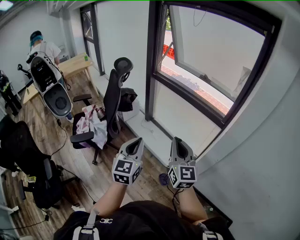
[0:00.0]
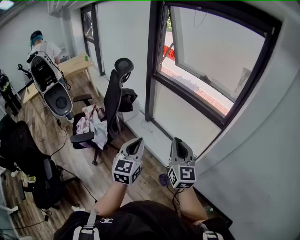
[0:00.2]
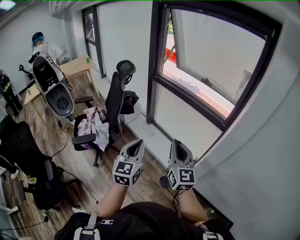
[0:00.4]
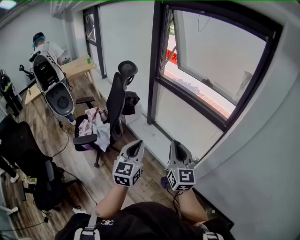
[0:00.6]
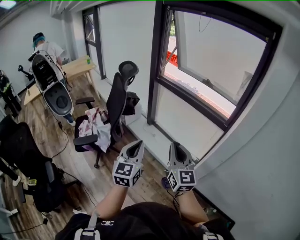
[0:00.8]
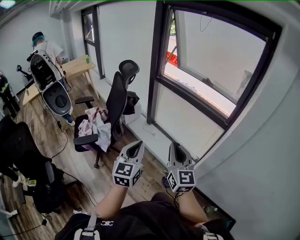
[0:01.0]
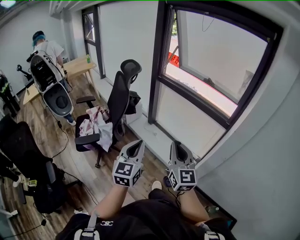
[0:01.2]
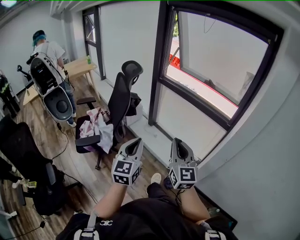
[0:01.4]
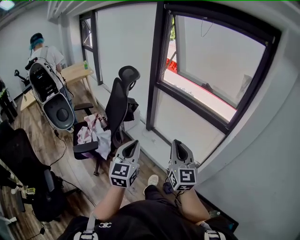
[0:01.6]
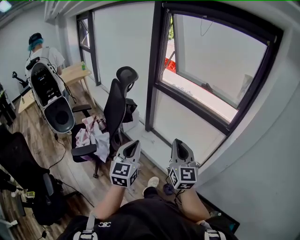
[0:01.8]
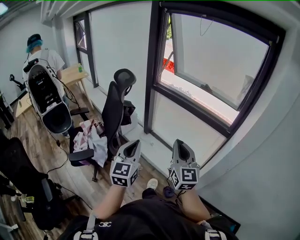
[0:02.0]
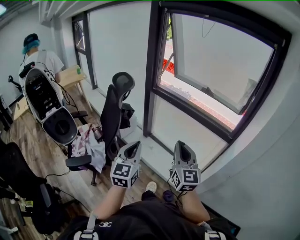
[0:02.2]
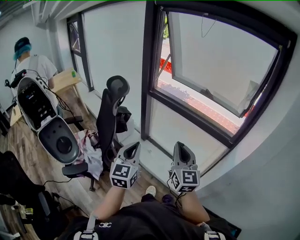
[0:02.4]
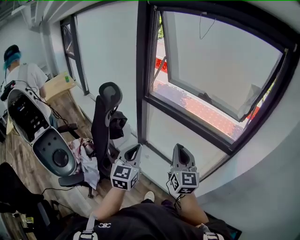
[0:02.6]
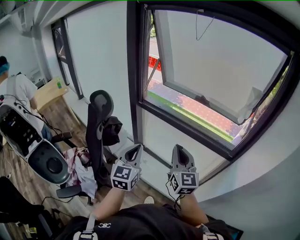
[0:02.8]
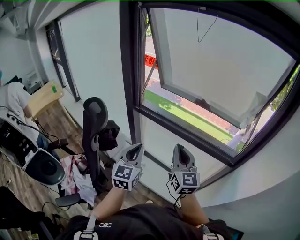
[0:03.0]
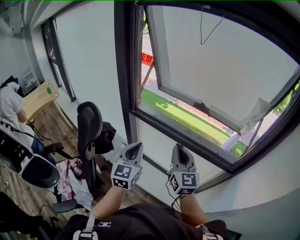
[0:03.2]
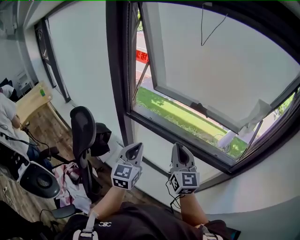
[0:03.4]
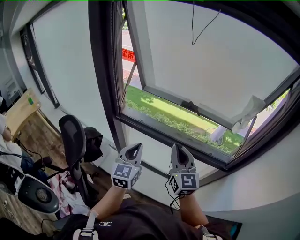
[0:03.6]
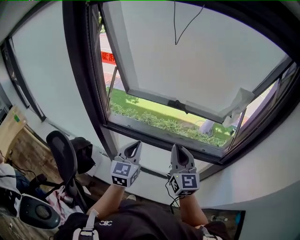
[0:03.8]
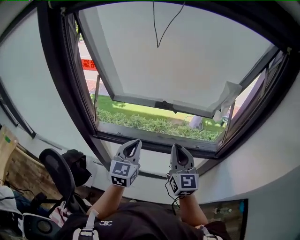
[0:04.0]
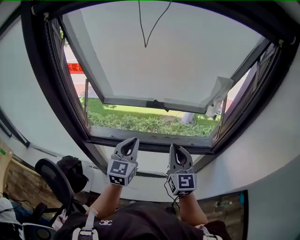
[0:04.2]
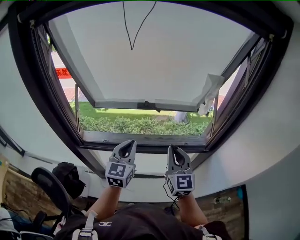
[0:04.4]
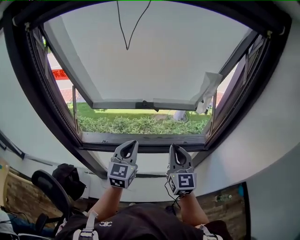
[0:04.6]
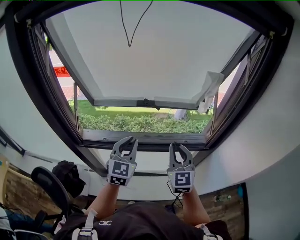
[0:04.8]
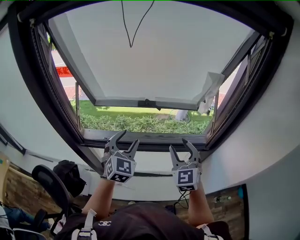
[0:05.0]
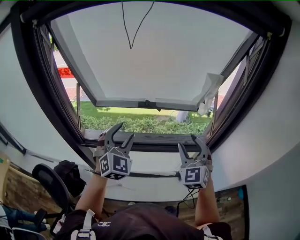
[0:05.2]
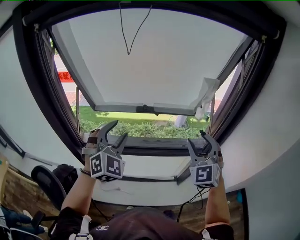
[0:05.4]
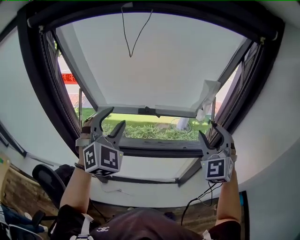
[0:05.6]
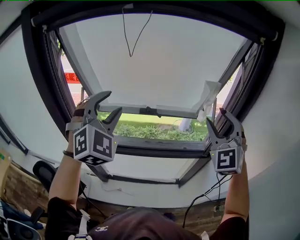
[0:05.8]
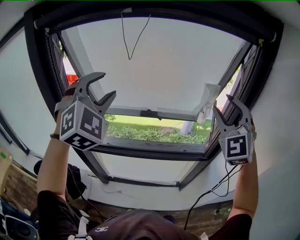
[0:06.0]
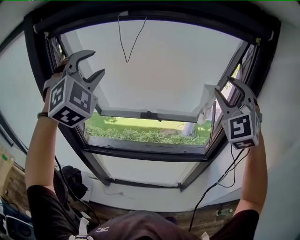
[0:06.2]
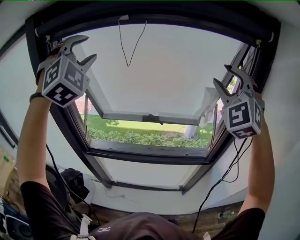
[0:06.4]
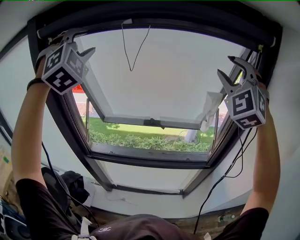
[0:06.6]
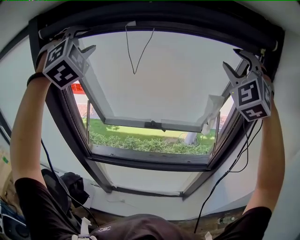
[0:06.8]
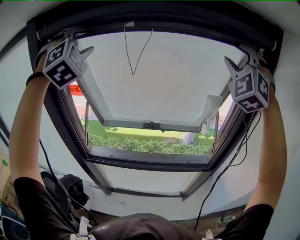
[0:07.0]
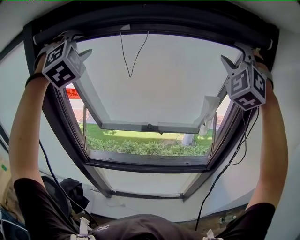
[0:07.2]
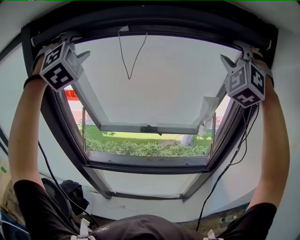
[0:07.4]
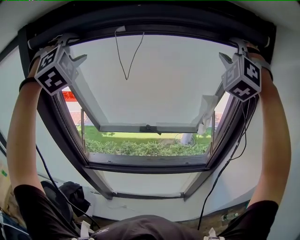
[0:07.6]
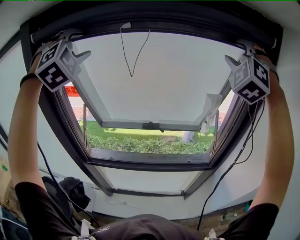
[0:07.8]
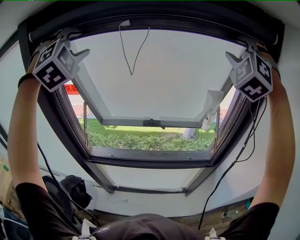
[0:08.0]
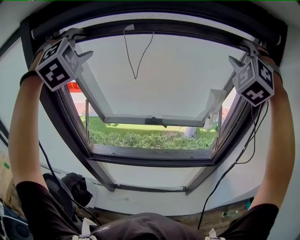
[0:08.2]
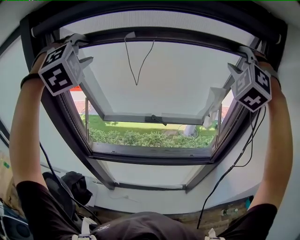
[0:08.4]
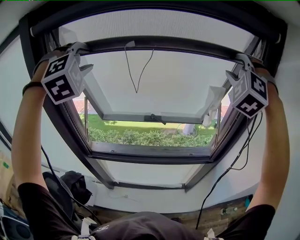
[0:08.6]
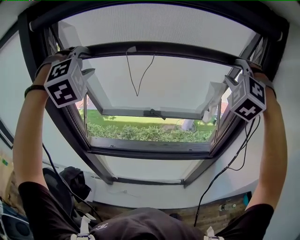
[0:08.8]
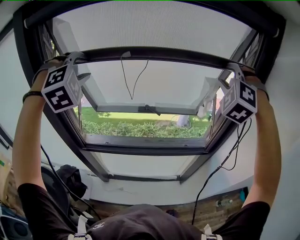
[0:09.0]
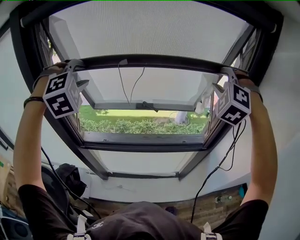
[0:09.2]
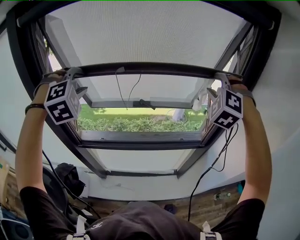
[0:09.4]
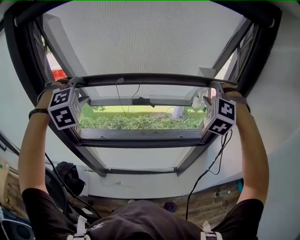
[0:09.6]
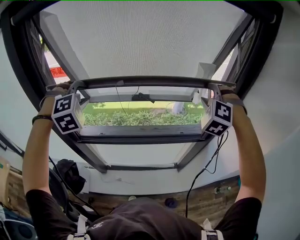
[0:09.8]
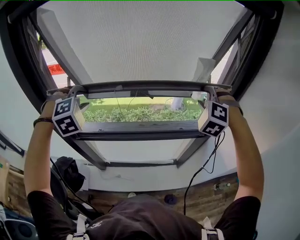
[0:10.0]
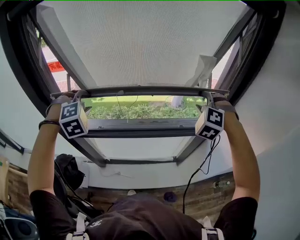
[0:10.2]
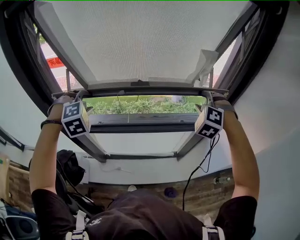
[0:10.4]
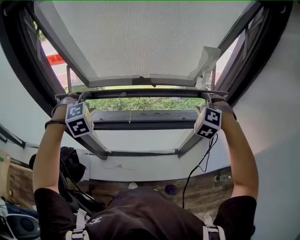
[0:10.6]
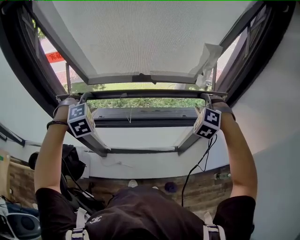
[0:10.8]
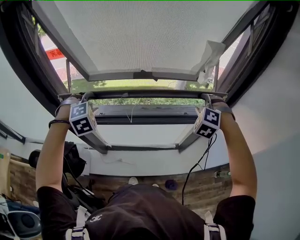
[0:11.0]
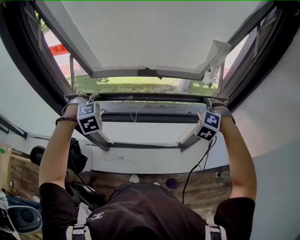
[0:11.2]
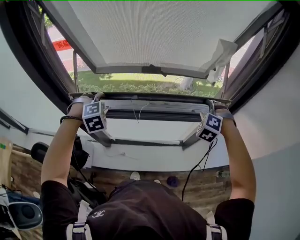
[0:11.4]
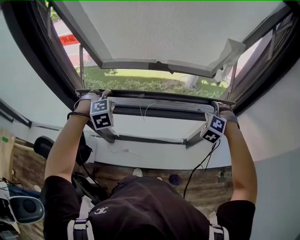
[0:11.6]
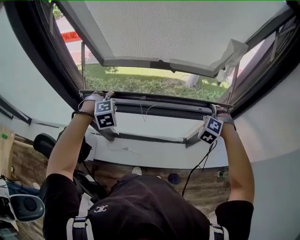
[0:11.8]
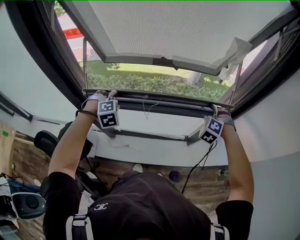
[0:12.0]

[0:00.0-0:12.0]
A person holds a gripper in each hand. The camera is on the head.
0:00.0 to 0:01.6: Both grippers travel together to the left, some 10 cm.
0:01.6 to 0:03.0: The pair of grippers is taken forward, roughly 50 cm.
0:03.0 to 0:04.4: The left gripper changes place by some 30 cm, and changes its angle by some 30 degrees. The right gripper moves approximately 20 cm, and rotates roughly 30 degrees.
0:04.4 to 0:06.0: The left gripper moves upward, roughly 30 cm, twists roughly 60 degrees clockwise, seen from behind, and opens. The right gripper goes roughly 30 cm upward and to the right, twists roughly 50 degrees counterclockwise, seen from behind, and opens up.
0:06.0 to 0:07.6: The right gripper is displaced upward and forward by some 20 cm, and turns by some 40 degrees, while the left gripper is displaced upward, forward and to the left by roughly 20 cm, and turns by approximately 20 degrees.
0:07.6 to 0:09.0: Both grippers travel together downward, roughly 15 cm. The right gripper changes its angle by about 20 degrees.
0:09.0 to 0:10.4: Both grippers move downward, roughly 25 cm. The right gripper changes its angle by some 20 degrees; the left gripper turns by roughly 20 degrees.
0:10.4 to 0:12.0: Both grippers move downward, approximately 20 cm.

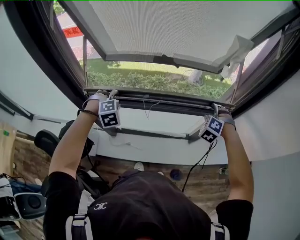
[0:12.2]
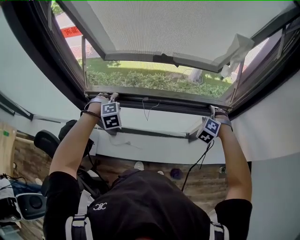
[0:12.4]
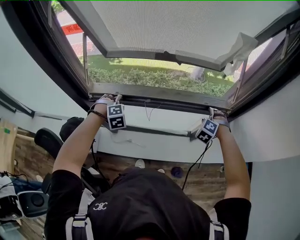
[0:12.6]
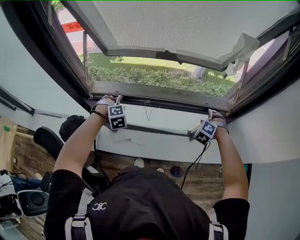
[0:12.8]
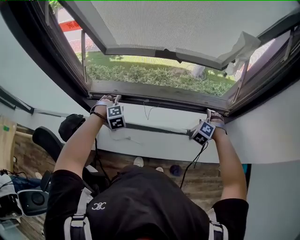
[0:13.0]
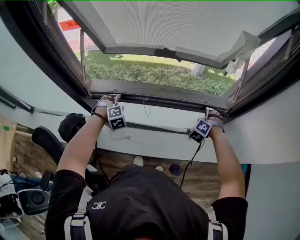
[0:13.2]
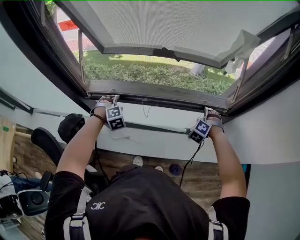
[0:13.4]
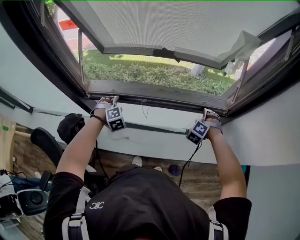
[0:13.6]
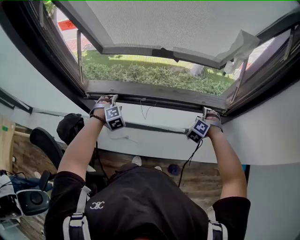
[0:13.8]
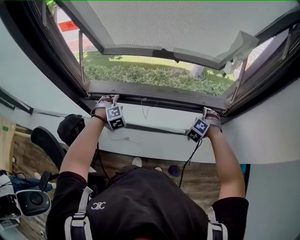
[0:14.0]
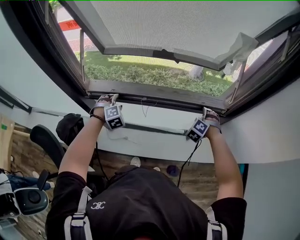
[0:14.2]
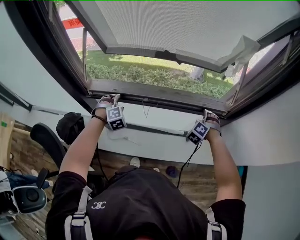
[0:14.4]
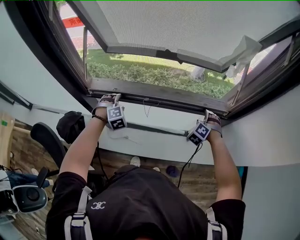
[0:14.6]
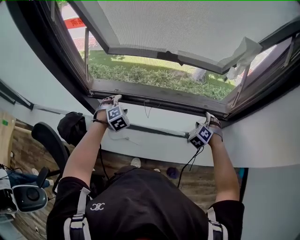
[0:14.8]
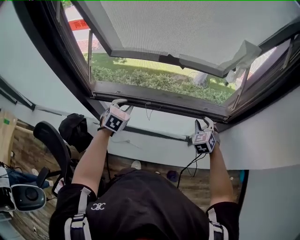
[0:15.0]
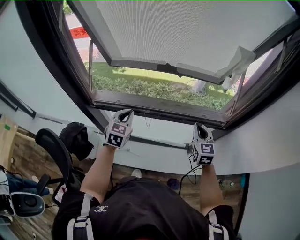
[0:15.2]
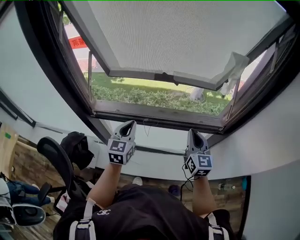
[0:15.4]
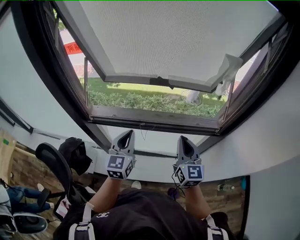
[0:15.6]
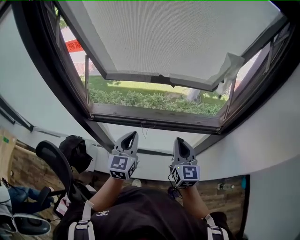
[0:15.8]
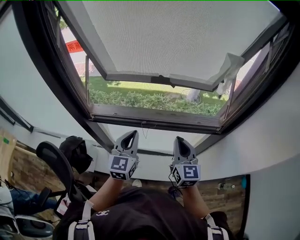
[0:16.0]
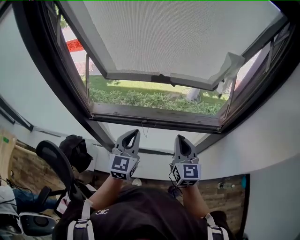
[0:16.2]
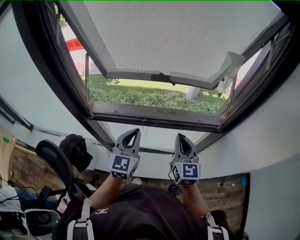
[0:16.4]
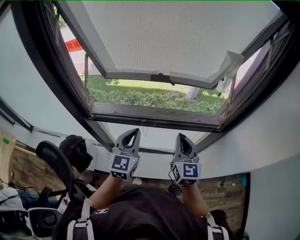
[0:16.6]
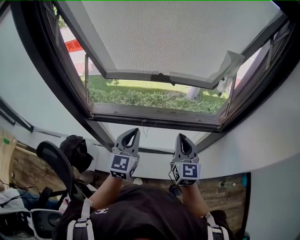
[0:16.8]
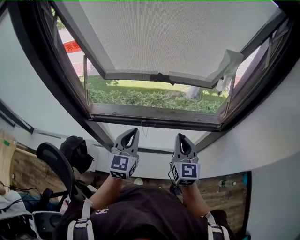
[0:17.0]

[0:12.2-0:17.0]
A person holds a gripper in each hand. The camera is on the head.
0:12.2 to 0:13.8: The grippers both shift downward by some 10 cm.
0:13.8 to 0:15.4: The left gripper heads upward and to the right, covering approximately 20 cm, rolls counterclockwise, seen from behind, by some 60 degrees, and closes its fingers, while the right gripper heads upward, to the left and backward, covering about 20 cm, tilts its fingers roughly 40 degrees upward, and closes its fingers.
0:15.4 to 0:17.0: The left gripper changes place by some 5 cm. The right gripper travels to the left by about 5 cm.

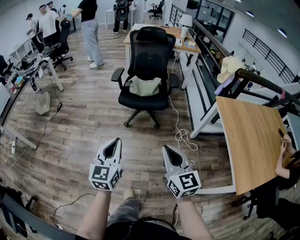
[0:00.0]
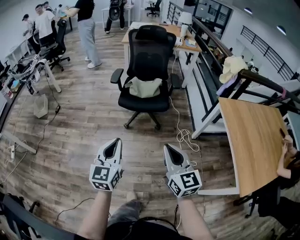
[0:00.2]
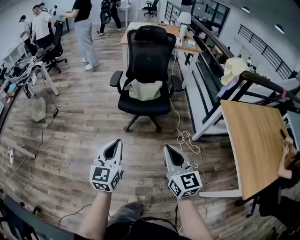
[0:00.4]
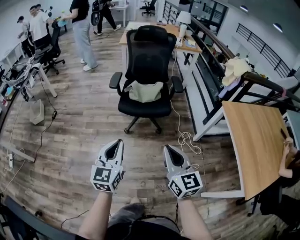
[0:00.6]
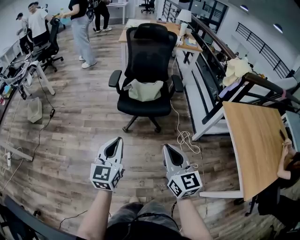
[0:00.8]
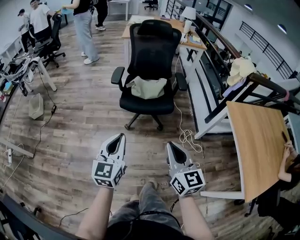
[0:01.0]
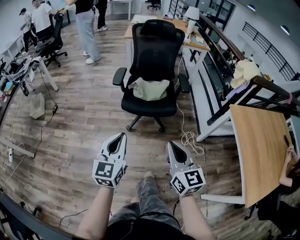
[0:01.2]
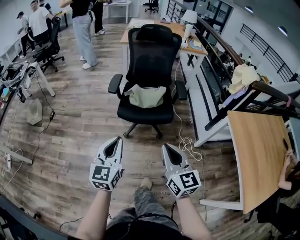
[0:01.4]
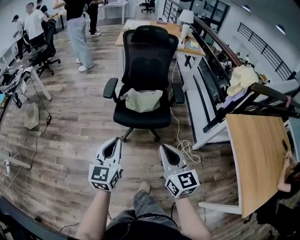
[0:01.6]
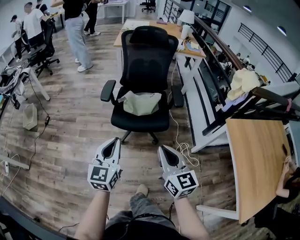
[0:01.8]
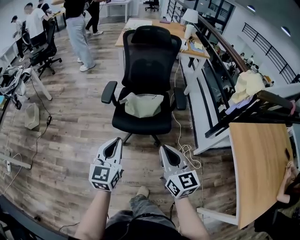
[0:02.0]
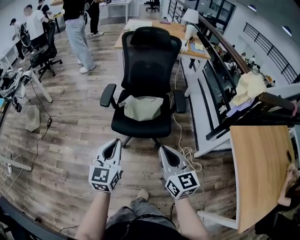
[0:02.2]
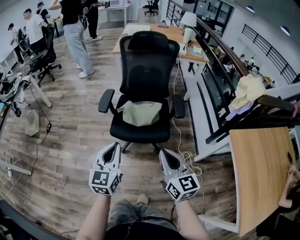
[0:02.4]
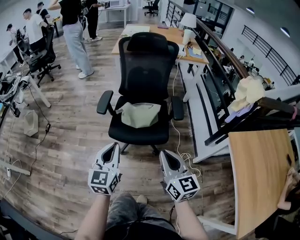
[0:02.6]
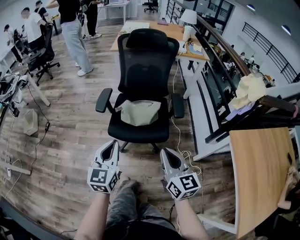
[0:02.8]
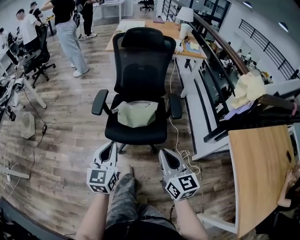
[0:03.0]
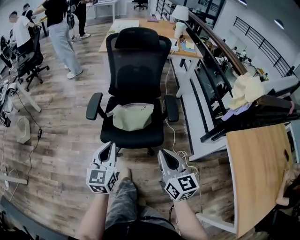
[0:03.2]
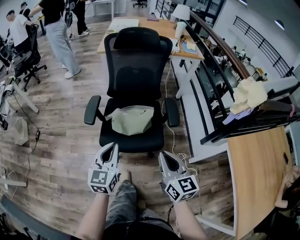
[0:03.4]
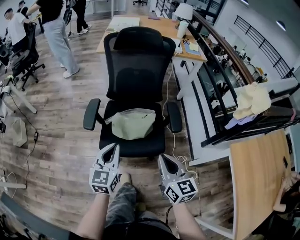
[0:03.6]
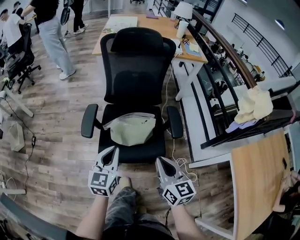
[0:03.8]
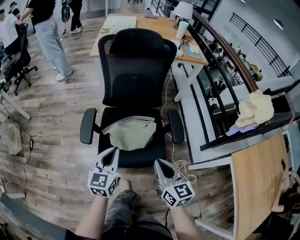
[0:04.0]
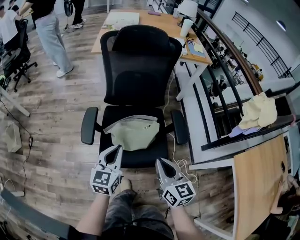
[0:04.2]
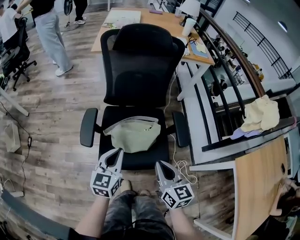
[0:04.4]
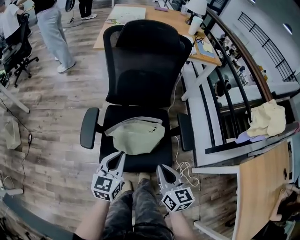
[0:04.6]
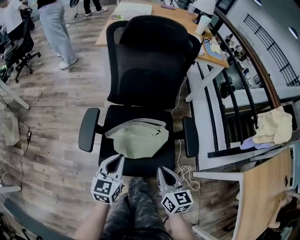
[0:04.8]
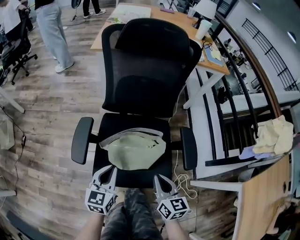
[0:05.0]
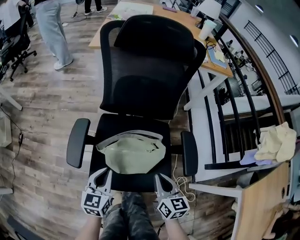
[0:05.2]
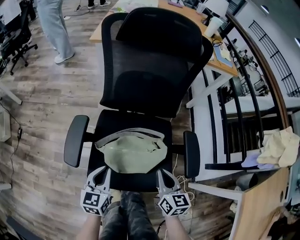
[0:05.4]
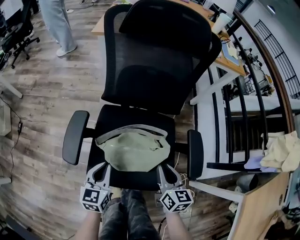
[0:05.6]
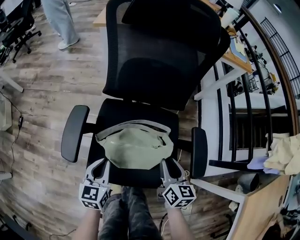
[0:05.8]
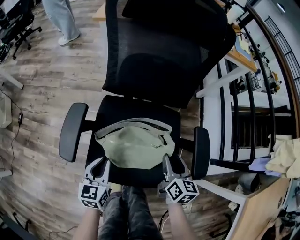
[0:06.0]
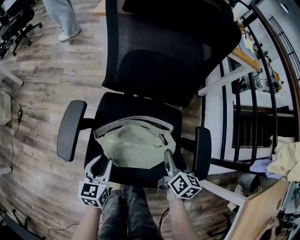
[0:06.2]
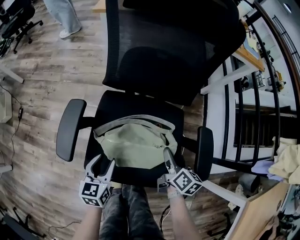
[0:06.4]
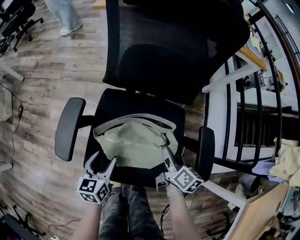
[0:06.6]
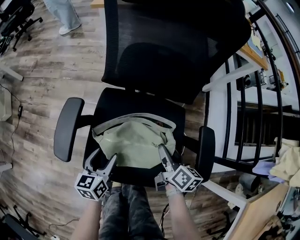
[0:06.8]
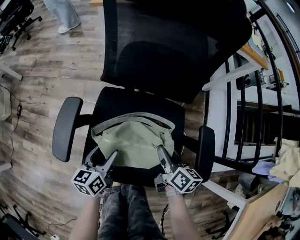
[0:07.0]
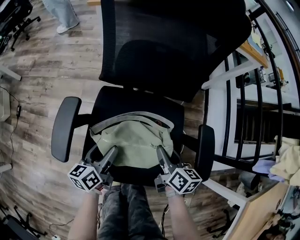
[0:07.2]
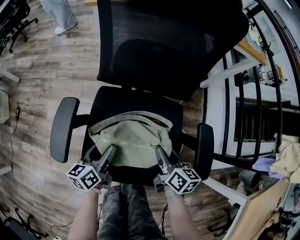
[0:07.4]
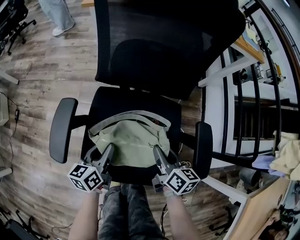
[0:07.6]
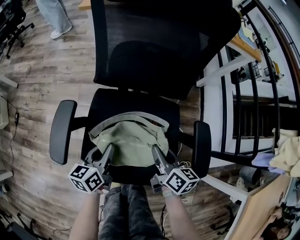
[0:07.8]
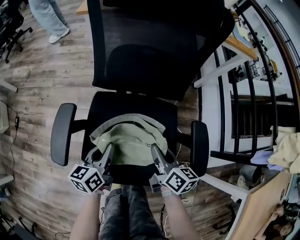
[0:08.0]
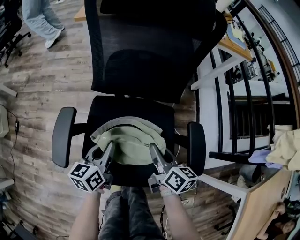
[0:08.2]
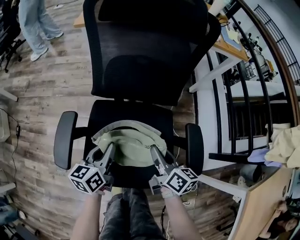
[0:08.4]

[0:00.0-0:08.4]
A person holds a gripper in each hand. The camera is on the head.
0:00.0 to 0:01.4: Both grippers travel together forward, approximately 20 cm.
0:01.4 to 0:02.8: The grippers both shift forward and to the right by roughly 15 cm.
0:02.8 to 0:04.2: The two grippers go roughly 20 cm forward.
0:04.2 to 0:05.6: The left gripper goes some 20 cm downward. The right gripper heads downward and forward, covering approximately 25 cm.
0:05.6 to 0:07.0: The right gripper goes about 10 cm downward and forward, swivels some 30 degrees, and opens its fingers; the left gripper moves downward, some 5 cm, changes its angle by some 20 degrees, and opens its fingers.
0:07.0 to 0:08.4: The two grippers go approximately 5 cm upward. The left gripper closes.
